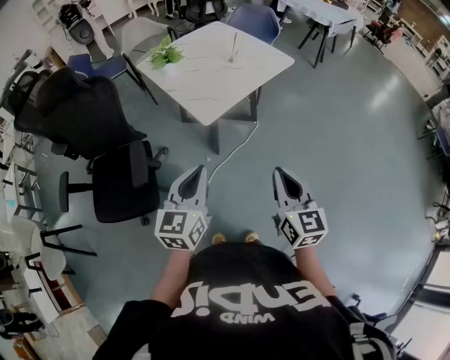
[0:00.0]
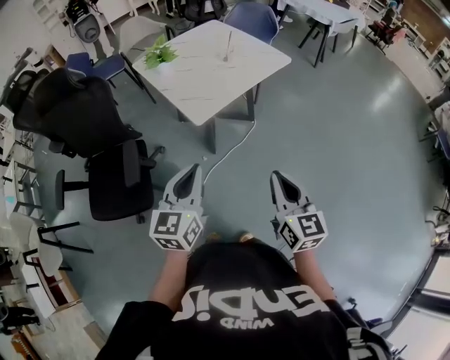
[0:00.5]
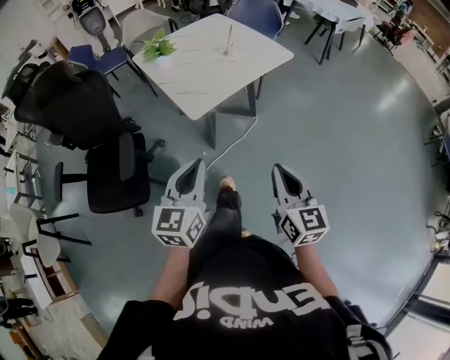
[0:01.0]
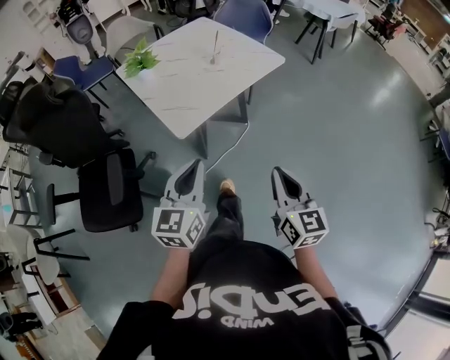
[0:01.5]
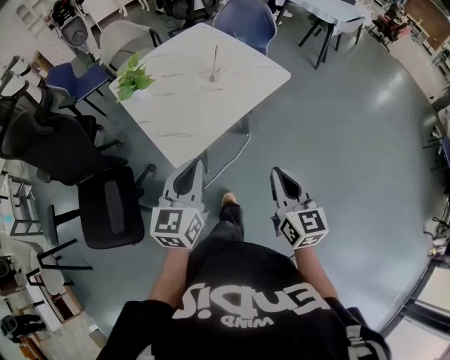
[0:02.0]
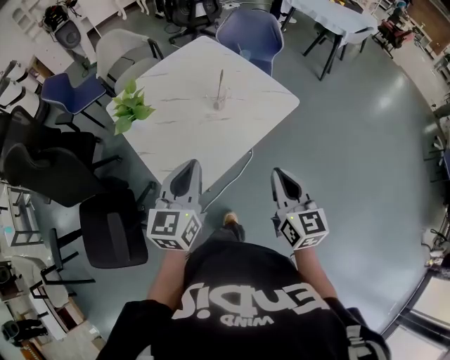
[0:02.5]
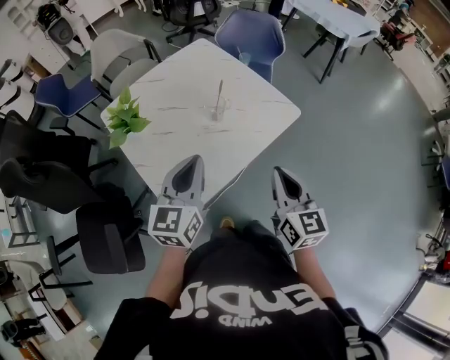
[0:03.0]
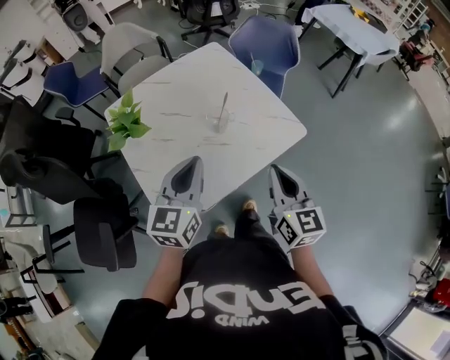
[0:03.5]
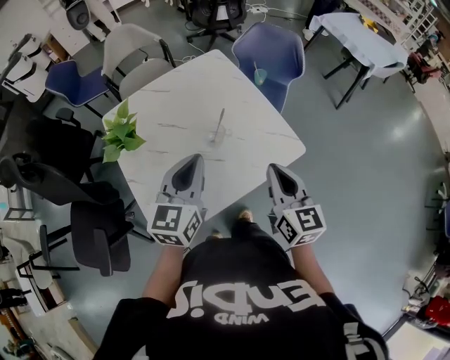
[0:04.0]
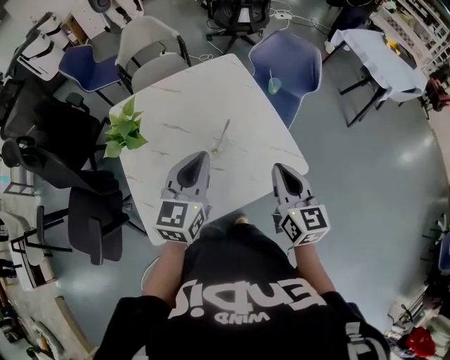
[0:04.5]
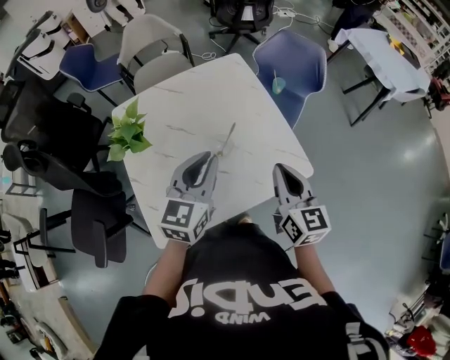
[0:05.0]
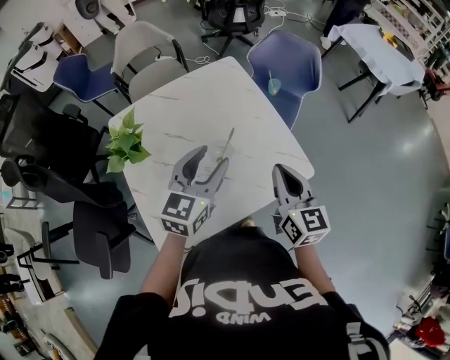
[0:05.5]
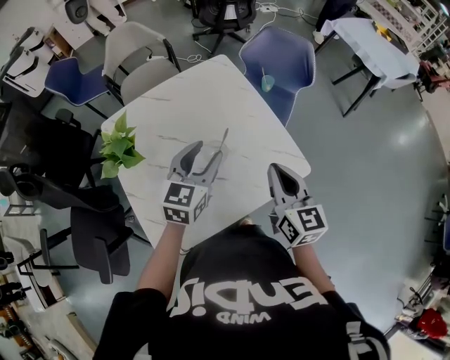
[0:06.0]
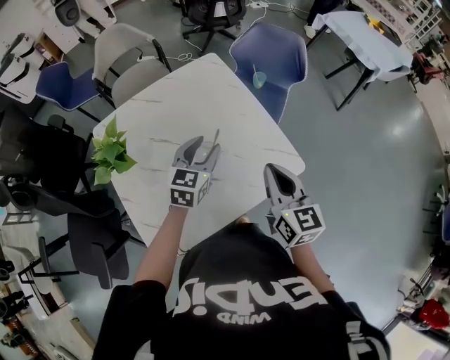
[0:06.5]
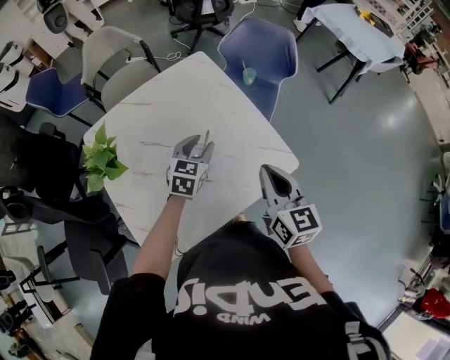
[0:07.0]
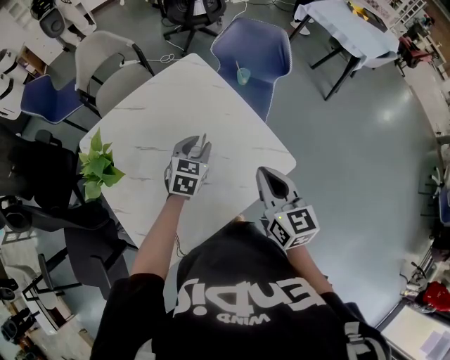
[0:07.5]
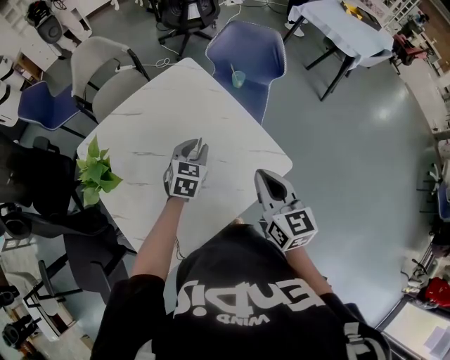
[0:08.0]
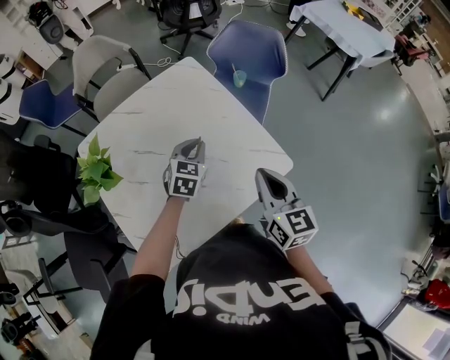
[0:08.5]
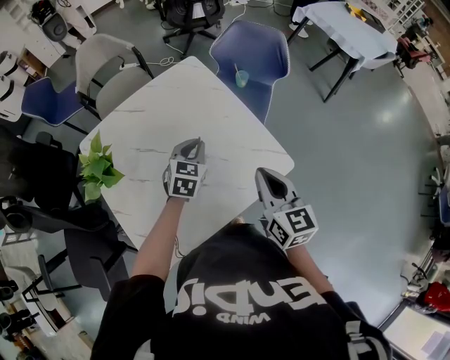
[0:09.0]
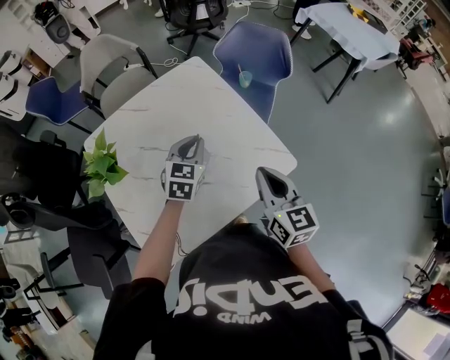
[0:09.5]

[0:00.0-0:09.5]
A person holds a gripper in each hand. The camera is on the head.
0:00.0 to 0:02.0: The right gripper is displaced forward and to the right by about 25 cm, while the left gripper shifts about 25 cm forward.
0:02.0 to 0:04.0: The two grippers go some 35 cm forward.
0:04.0 to 0:05.5: Both grippers move forward, about 10 cm. The left gripper opens its fingers.
0:05.5 to 0:07.5: The left gripper shifts roughly 20 cm downward and forward, and turns by roughly 20 degrees.
0:07.5 to 0:09.5: The left gripper closes up.

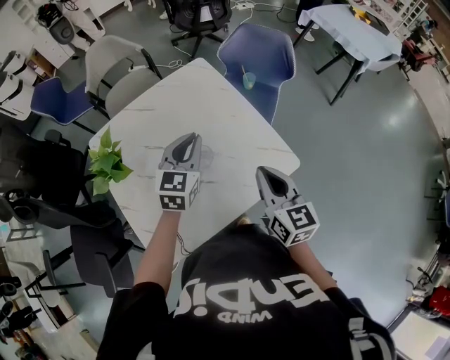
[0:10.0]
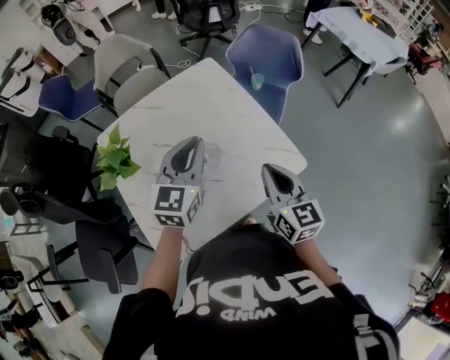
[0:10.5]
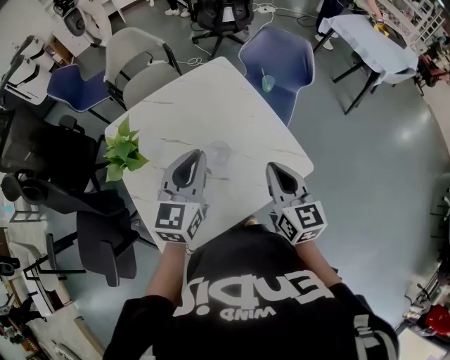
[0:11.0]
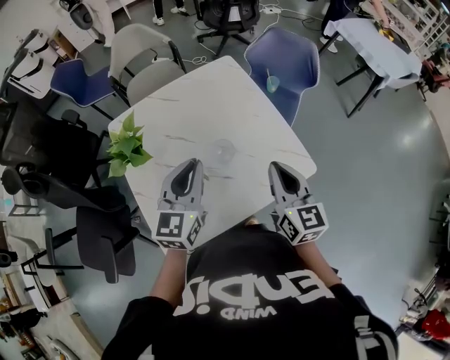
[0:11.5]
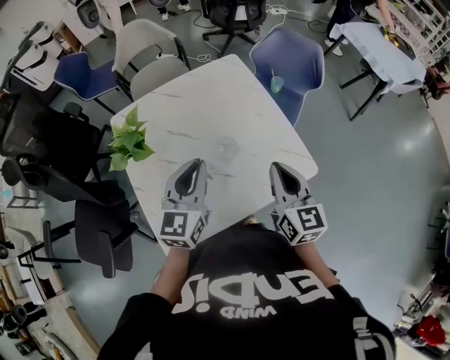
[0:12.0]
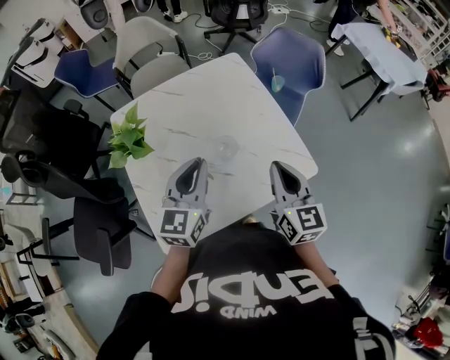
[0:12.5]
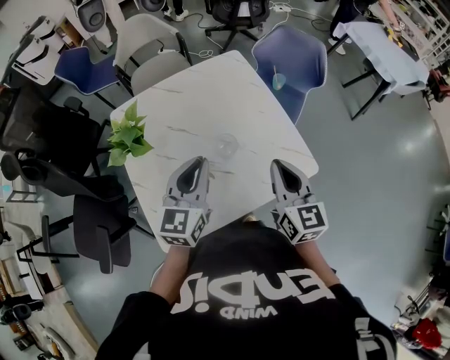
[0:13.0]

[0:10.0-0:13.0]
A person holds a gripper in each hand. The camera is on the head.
0:10.0 to 0:11.5: The left gripper shifts roughly 10 cm backward and to the left.
0:11.5 to 0:13.0: The grippers move only a little.

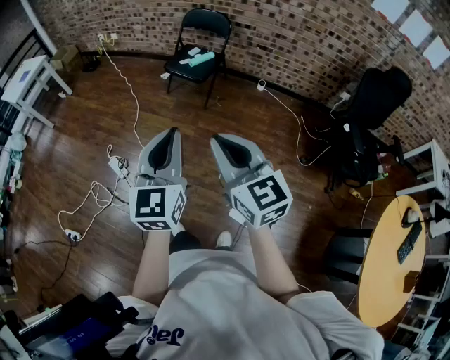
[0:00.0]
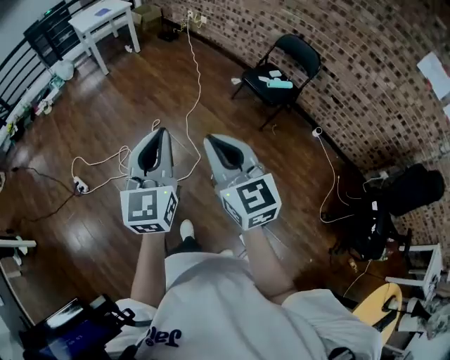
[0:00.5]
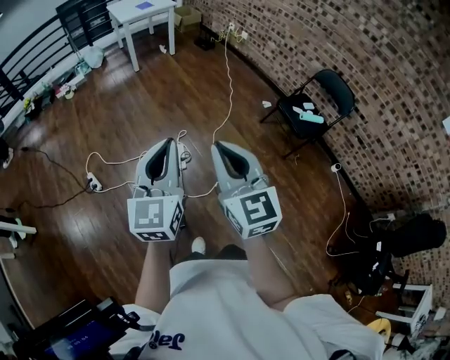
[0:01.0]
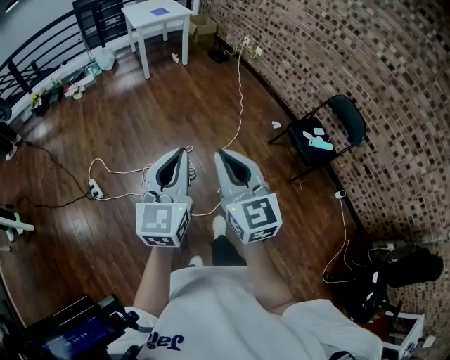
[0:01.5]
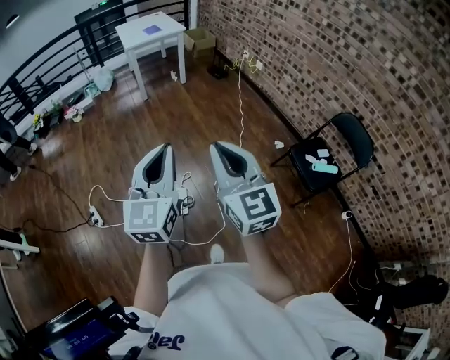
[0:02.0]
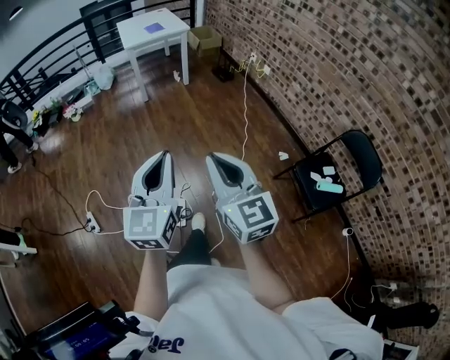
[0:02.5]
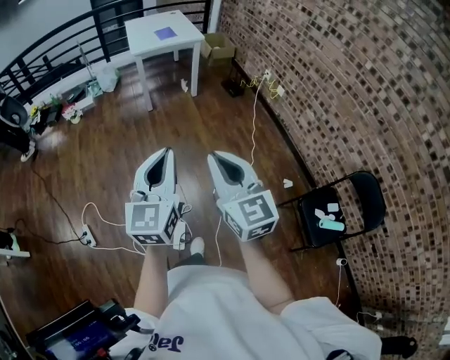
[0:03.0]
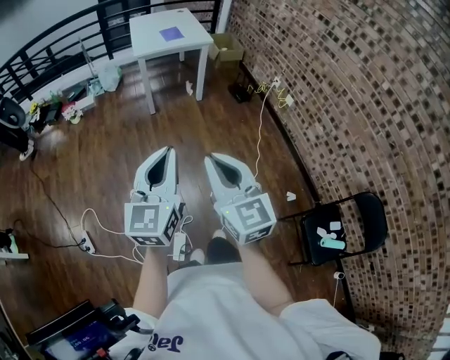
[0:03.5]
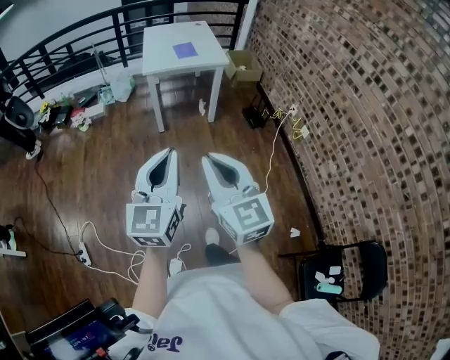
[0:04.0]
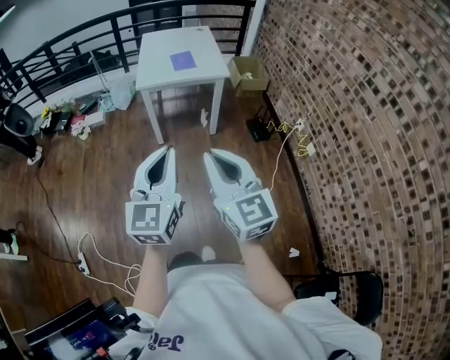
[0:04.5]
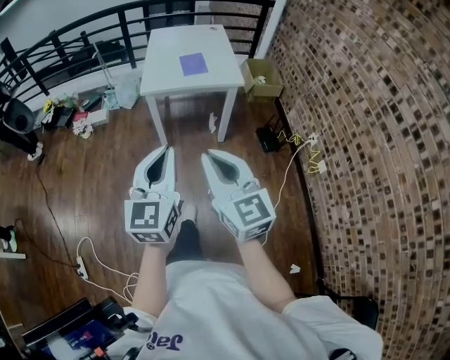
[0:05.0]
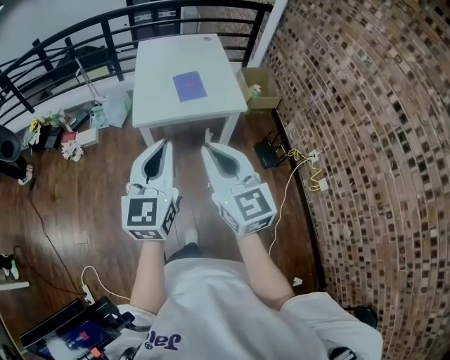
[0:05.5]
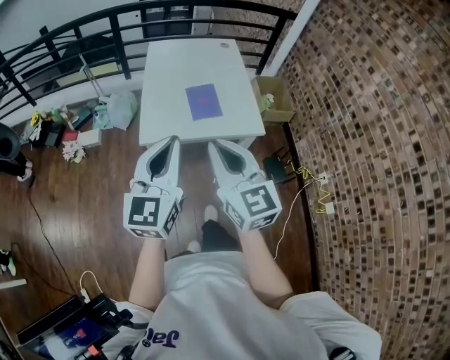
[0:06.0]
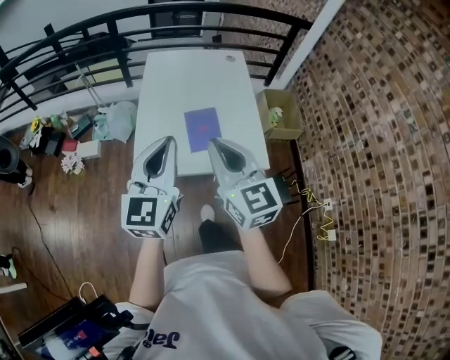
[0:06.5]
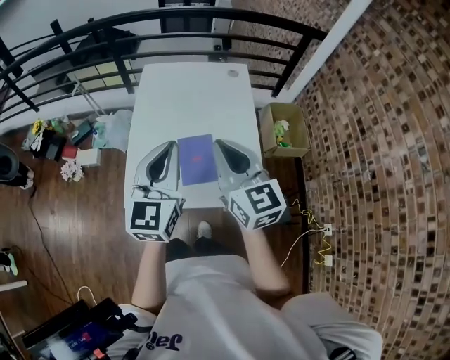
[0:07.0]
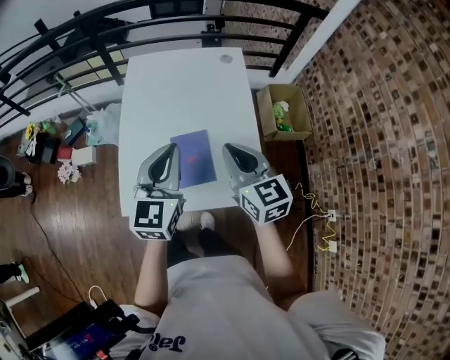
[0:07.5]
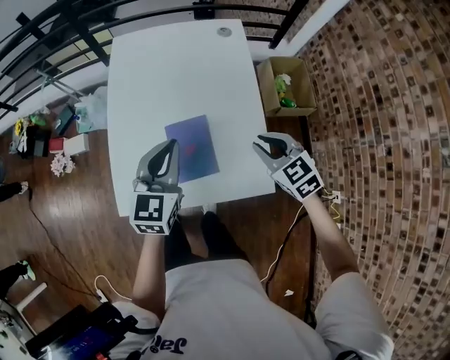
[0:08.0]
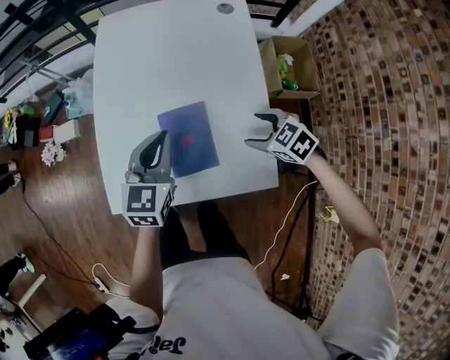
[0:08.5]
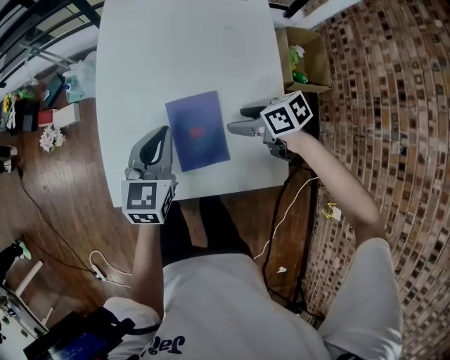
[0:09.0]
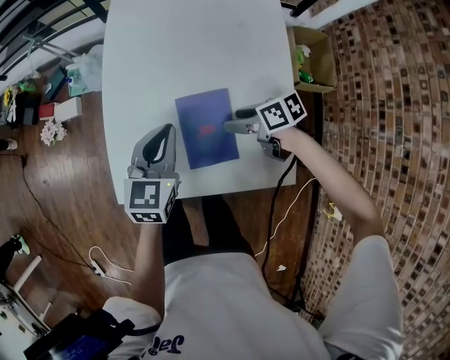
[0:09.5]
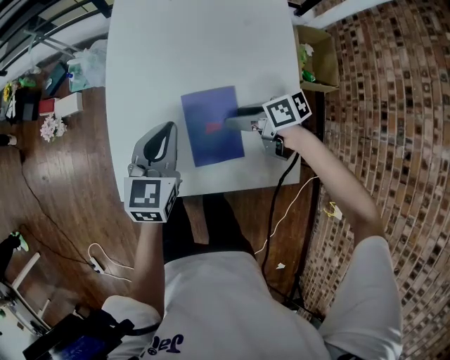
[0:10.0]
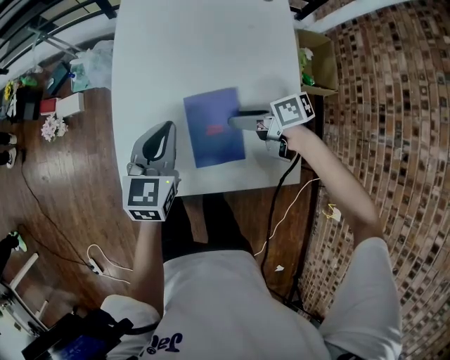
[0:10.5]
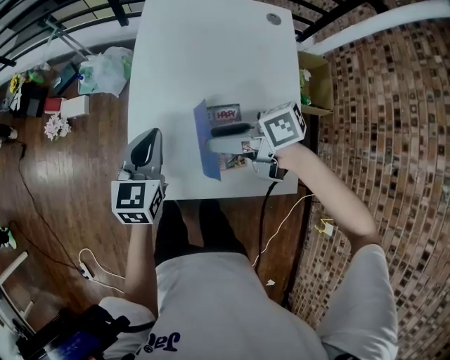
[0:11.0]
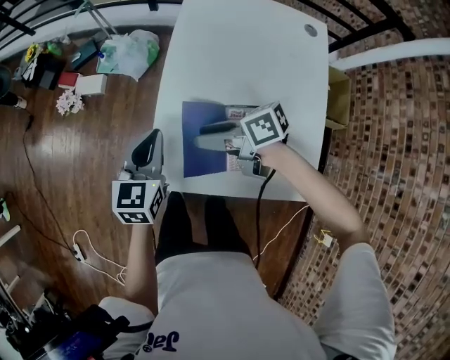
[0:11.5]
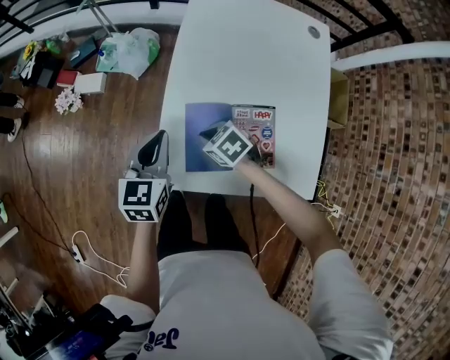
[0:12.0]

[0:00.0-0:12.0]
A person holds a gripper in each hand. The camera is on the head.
0:00.0 to 0:02.0: Both grippers are carried approximately 60 cm. The right gripper changes its angle by about 30 degrees; the left gripper rotates roughly 40 degrees.
0:02.0 to 0:04.0: The pair of grippers is taken forward, some 60 cm.
0:04.0 to 0:06.0: The two grippers travel together, forward, roughly 70 cm.
0:06.0 to 0:08.0: The pair of grippers is taken forward and to the right, roughly 40 cm. Both grippers travel together downward, roughly 20 cm. The left gripper changes its angle by approximately 20 degrees. The right gripper points its fingers about 40 degrees further downward.
0:08.0 to 0:10.0: Both grippers move downward, approximately 15 cm. The right gripper swivels approximately 60 degrees, and opens its fingers.
0:10.0 to 0:12.0: Both grippers move to the left and forward, about 20 cm. The right gripper rotates around the line of its fingers by roughly 40 degrees, counterclockwise from behind, and closes up.

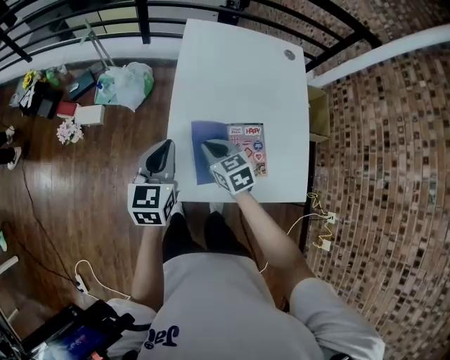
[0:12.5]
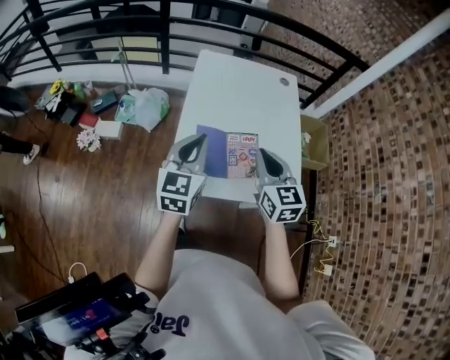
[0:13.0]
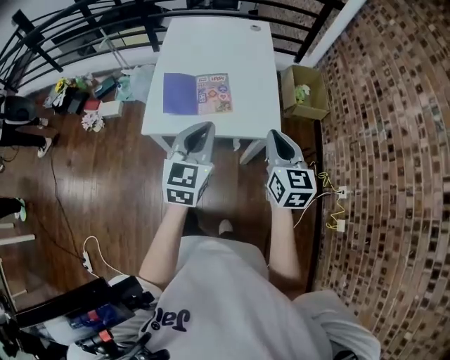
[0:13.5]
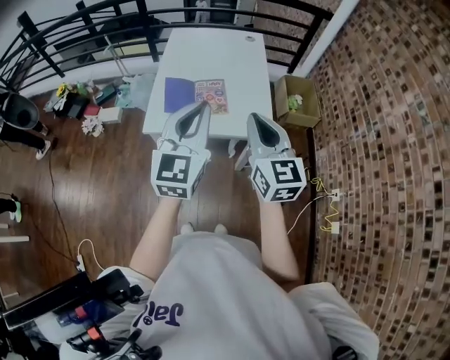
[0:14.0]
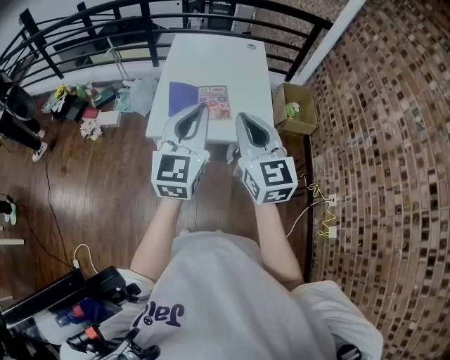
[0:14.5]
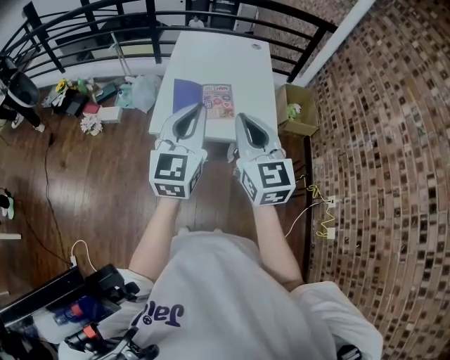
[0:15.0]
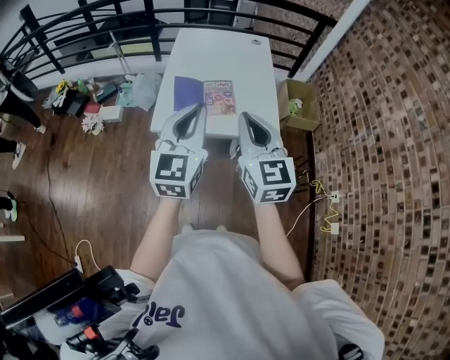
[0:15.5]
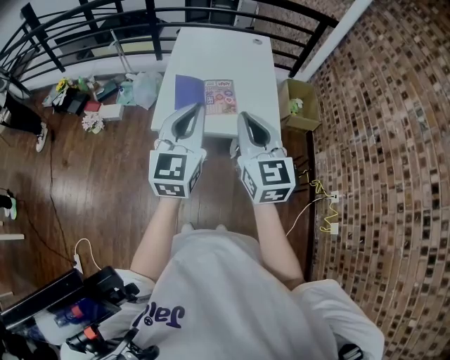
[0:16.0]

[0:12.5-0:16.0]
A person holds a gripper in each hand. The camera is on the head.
0:12.5 to 0:14.5: The left gripper goes roughly 40 cm backward, to the right and upward, and changes its angle by approximately 30 degrees. The right gripper goes about 50 cm backward, upward and to the right, and angles its fingers upward, by roughly 40 degrees.
0:14.5 to 0:16.0: There are only small adjustments of the grippers.
